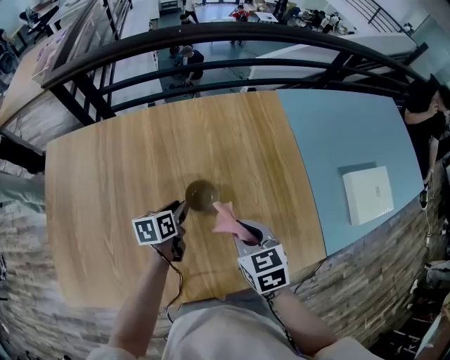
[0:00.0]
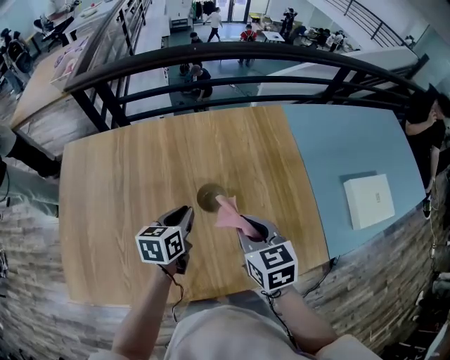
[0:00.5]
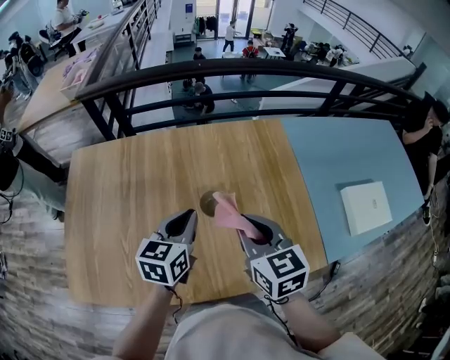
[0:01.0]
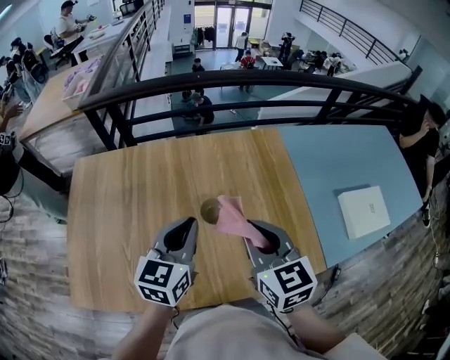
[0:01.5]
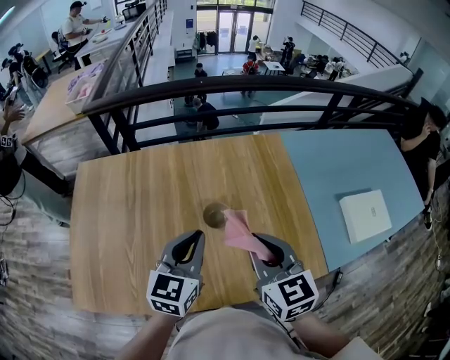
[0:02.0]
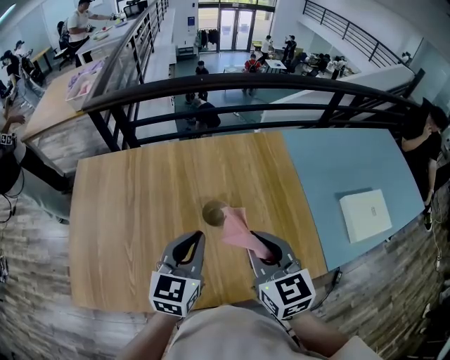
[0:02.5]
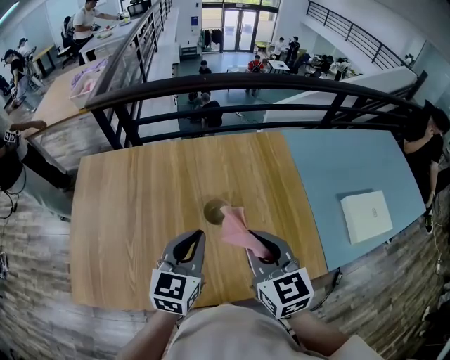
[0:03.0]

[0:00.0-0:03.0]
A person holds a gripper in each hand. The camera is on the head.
0:00.0 to 0:01.5: Both grippers travel together upward, approximately 25 cm. The left gripper rotates some 40 degrees, and closes. Meanwhile the right gripper changes its angle by approximately 20 degrees.
0:01.5 to 0:03.0: The grippers move only a little.

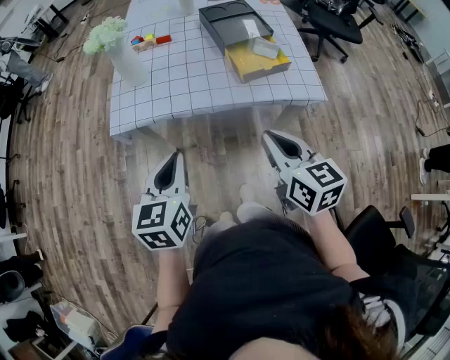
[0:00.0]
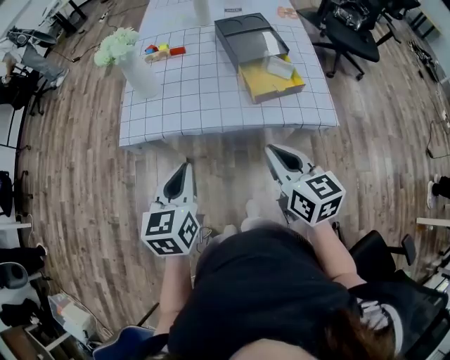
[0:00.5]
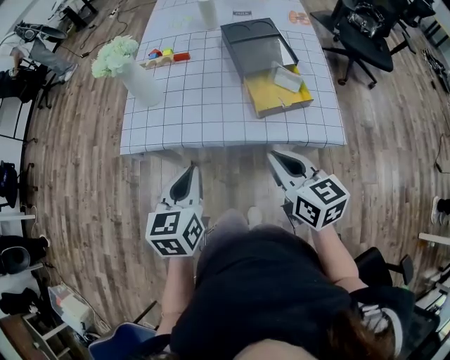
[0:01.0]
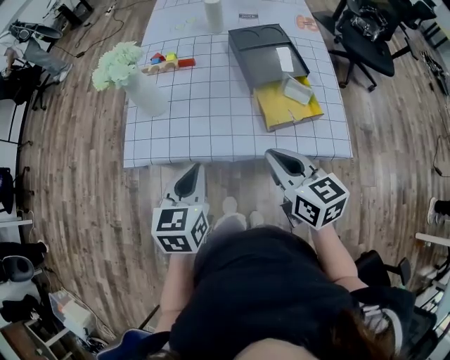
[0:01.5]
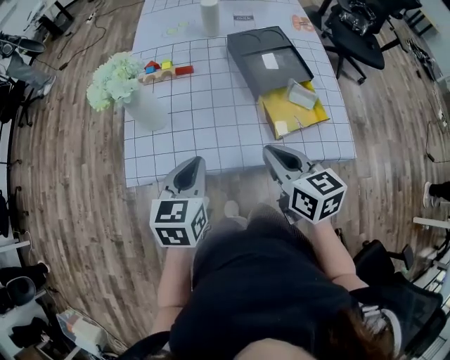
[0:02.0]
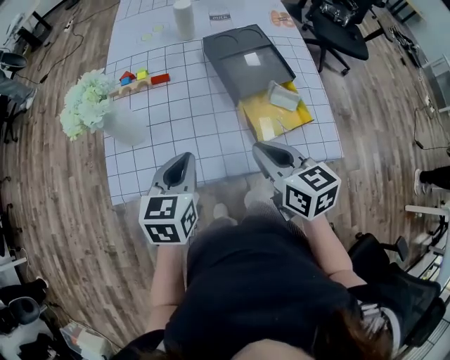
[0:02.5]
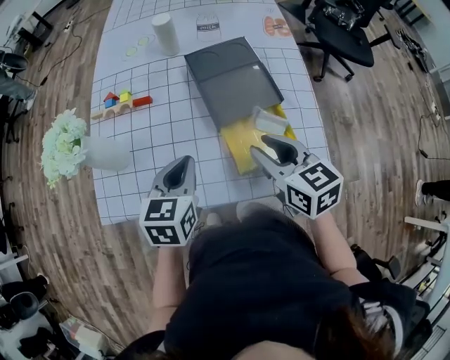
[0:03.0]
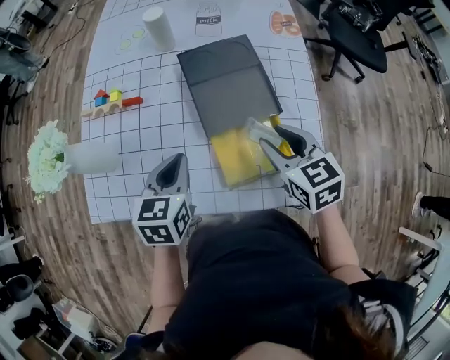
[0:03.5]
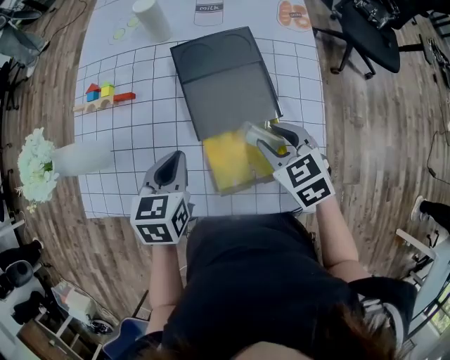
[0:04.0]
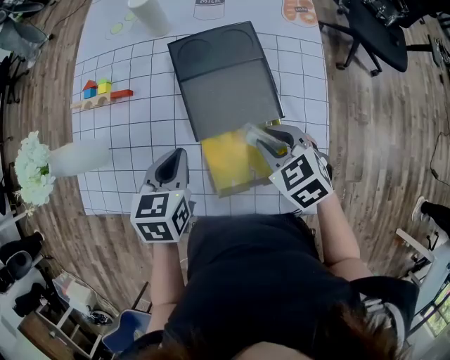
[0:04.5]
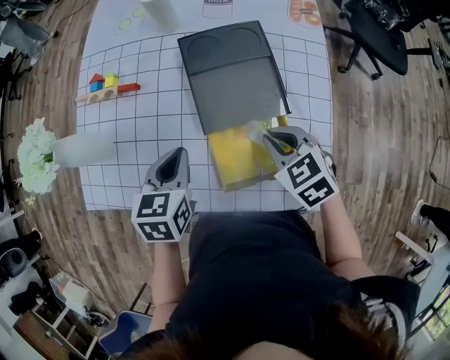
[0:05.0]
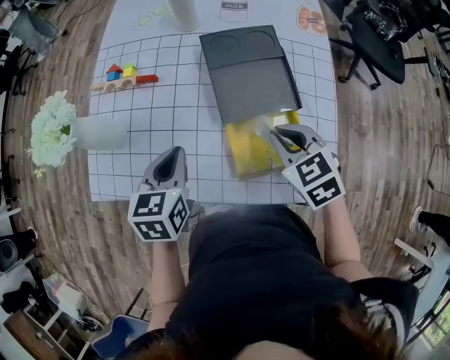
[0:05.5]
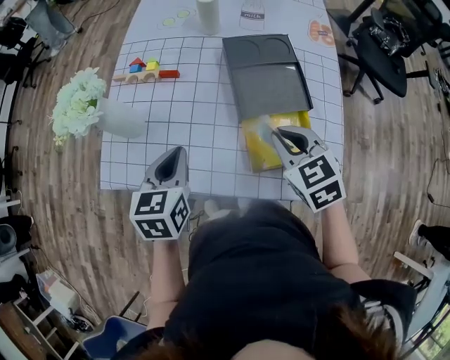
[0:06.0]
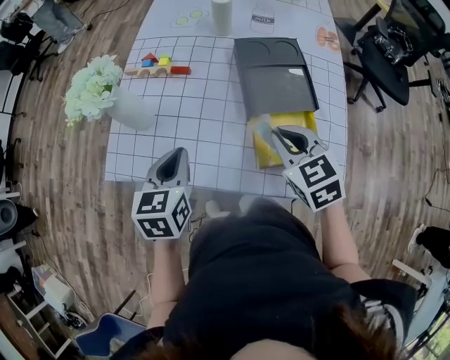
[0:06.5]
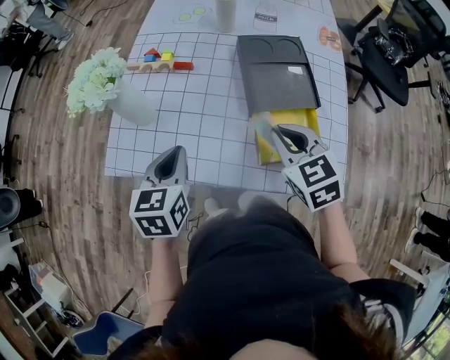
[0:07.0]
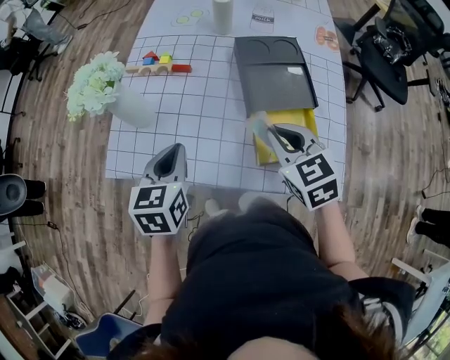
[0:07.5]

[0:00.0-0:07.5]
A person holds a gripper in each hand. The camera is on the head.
0:00.0 to 0:02.0: The grippers both shift forward by roughly 20 cm.
0:02.0 to 0:04.0: The right gripper shifts about 30 cm to the right, forward and downward, changes its angle by some 40 degrees, and opens up. The left gripper heads forward and to the right, covering about 25 cm.
0:04.0 to 0:05.5: The left gripper moves to the left, about 5 cm; the right gripper shifts by some 5 cm, and closes.
0:05.5 to 0:07.5: The right gripper shifts some 10 cm to the left and upward; the left gripper goes about 10 cm to the left.

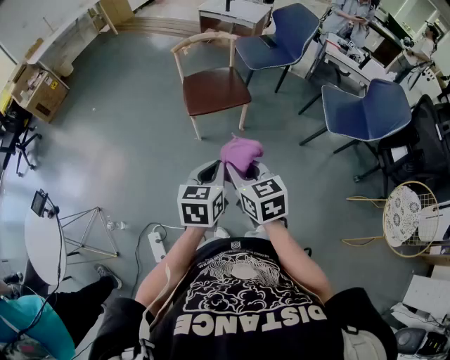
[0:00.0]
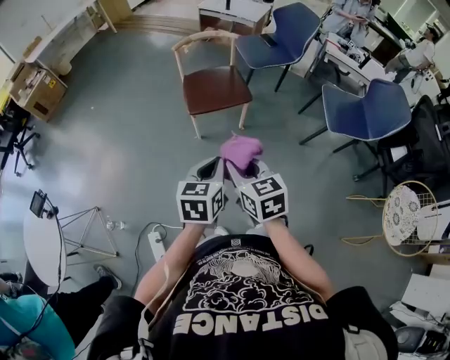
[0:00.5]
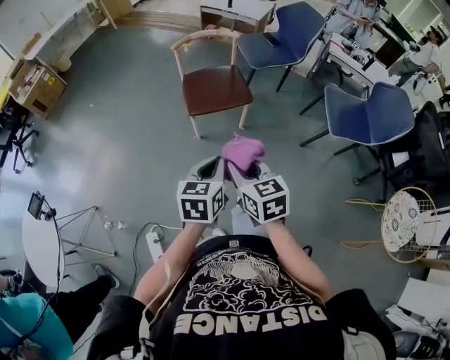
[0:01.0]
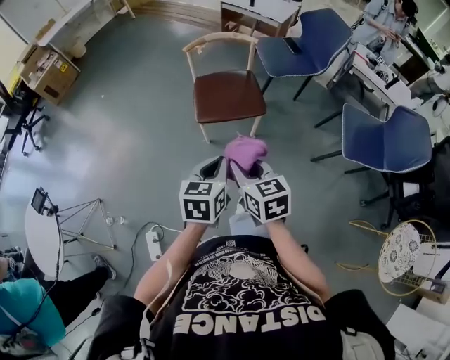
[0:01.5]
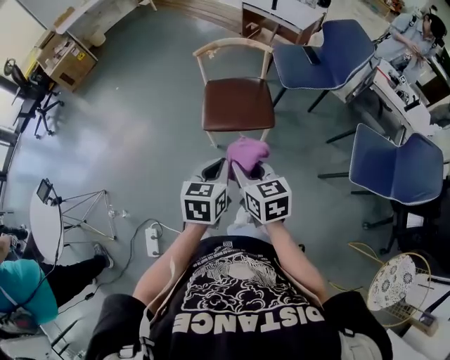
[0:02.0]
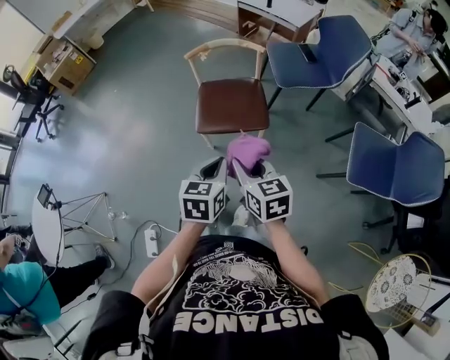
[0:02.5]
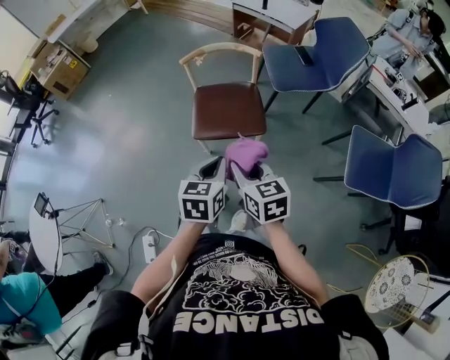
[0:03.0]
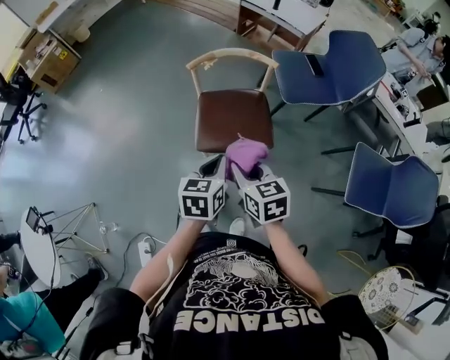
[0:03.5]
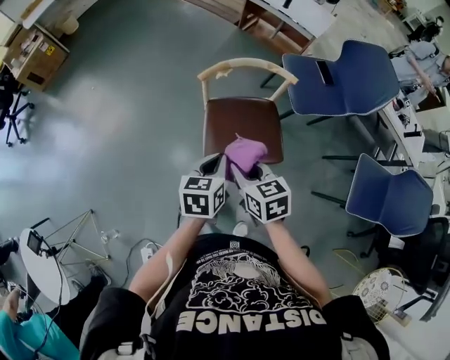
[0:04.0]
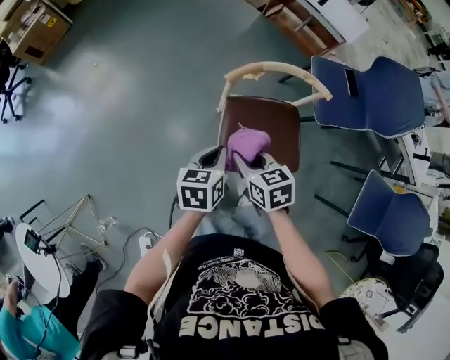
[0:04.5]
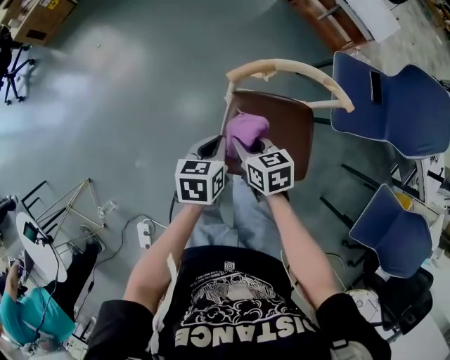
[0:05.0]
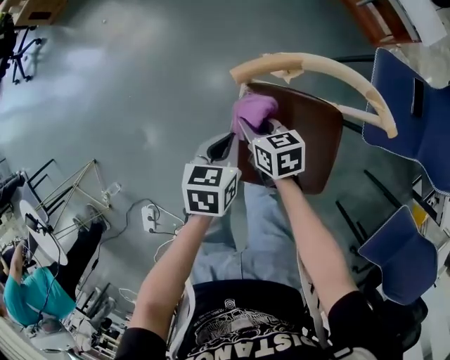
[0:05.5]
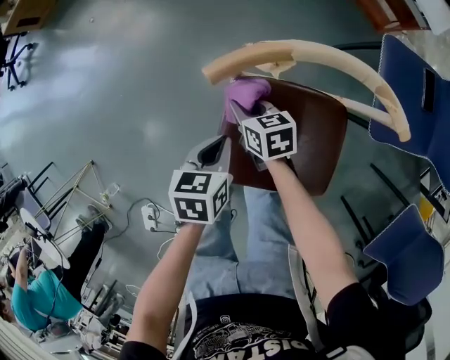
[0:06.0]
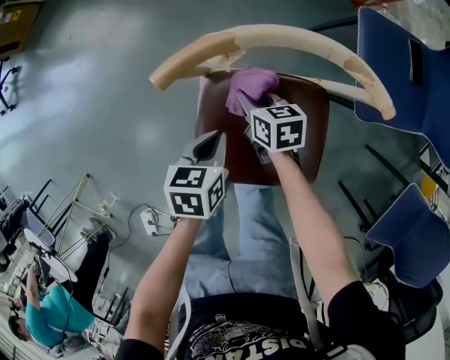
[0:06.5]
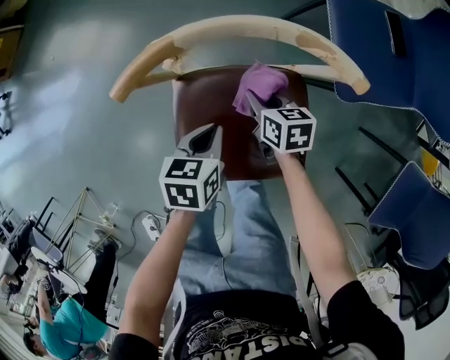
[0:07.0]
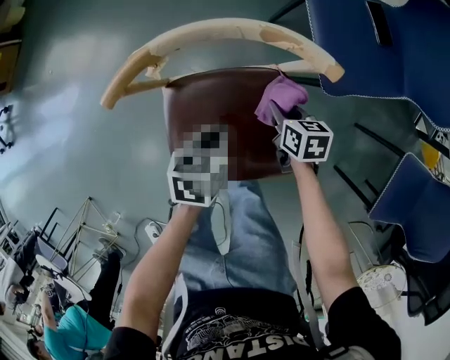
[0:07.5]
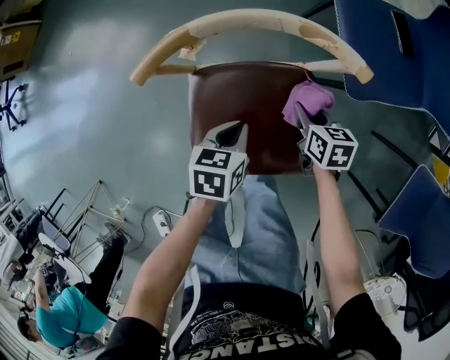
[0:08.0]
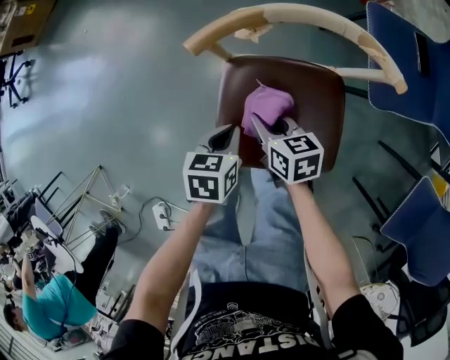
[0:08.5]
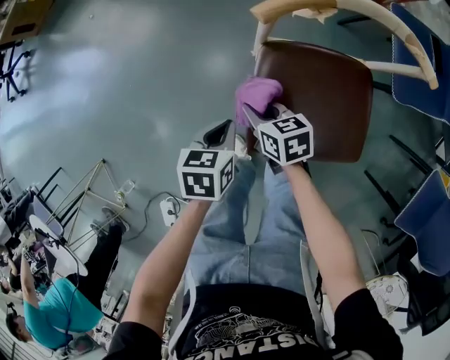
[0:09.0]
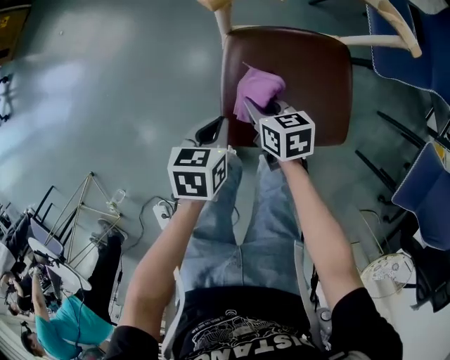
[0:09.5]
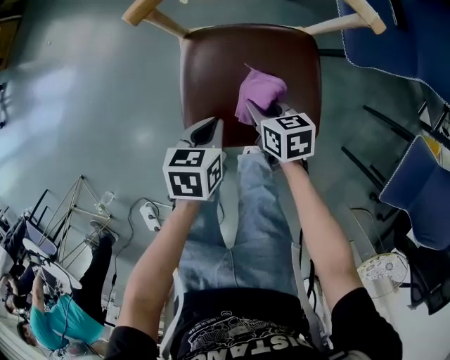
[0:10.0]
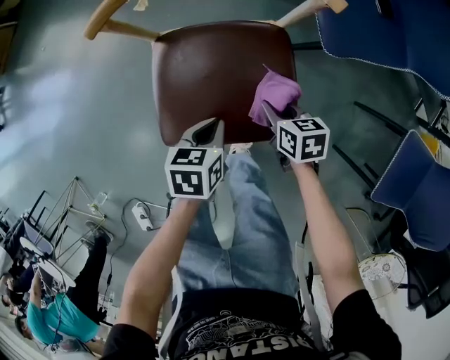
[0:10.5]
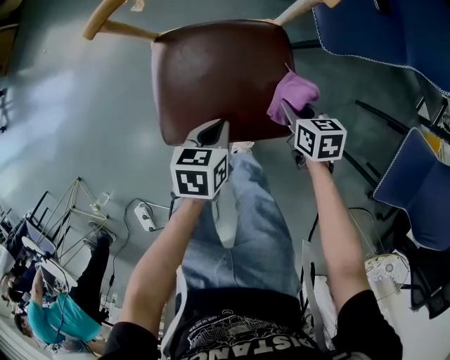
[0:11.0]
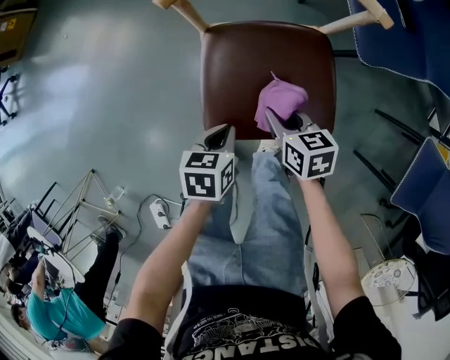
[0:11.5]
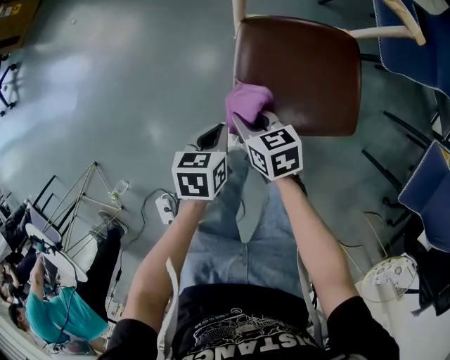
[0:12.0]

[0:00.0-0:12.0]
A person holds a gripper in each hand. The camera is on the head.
0:00.0 to 0:02.0: Both grippers move forward, about 20 cm.
0:02.0 to 0:04.0: Both grippers travel together forward, about 25 cm.
0:04.0 to 0:06.0: The grippers both shift downward and forward by some 35 cm. The left gripper swivels some 20 degrees, while the right gripper turns by roughly 20 degrees.
0:06.0 to 0:08.0: The right gripper changes place by some 30 cm, and turns by some 30 degrees; the left gripper shifts by approximately 15 cm.
0:08.0 to 0:10.0: The left gripper shifts about 10 cm backward, and travels to the left and back again, roughly 25 cm each way, while the right gripper travels to the left and backward by approximately 15 cm.
0:10.0 to 0:12.0: The right gripper travels to the left by approximately 20 cm; the left gripper shifts some 15 cm to the left and backward.

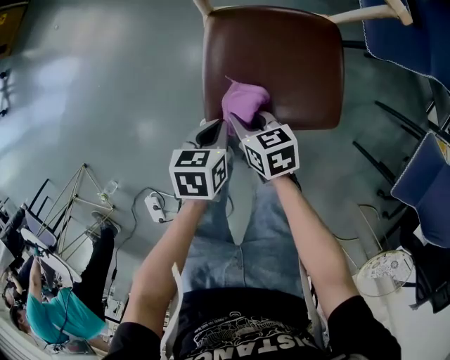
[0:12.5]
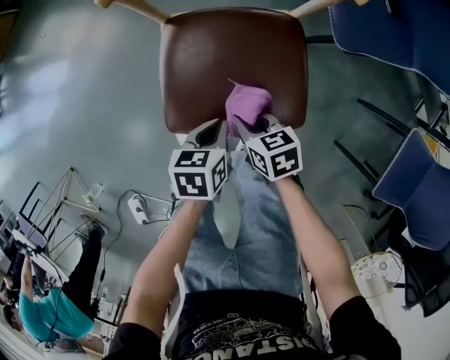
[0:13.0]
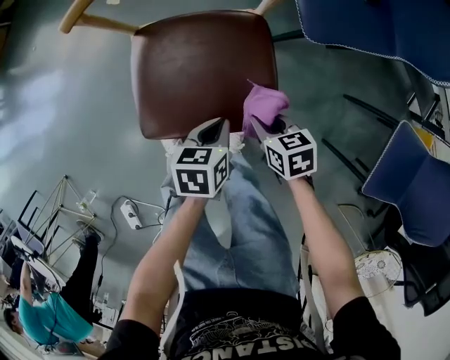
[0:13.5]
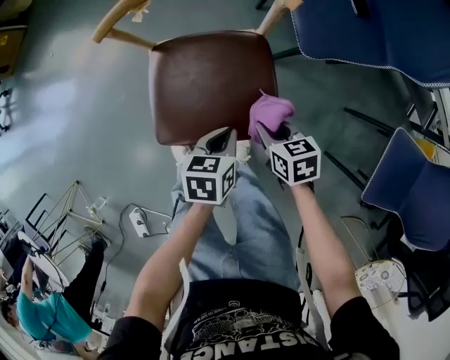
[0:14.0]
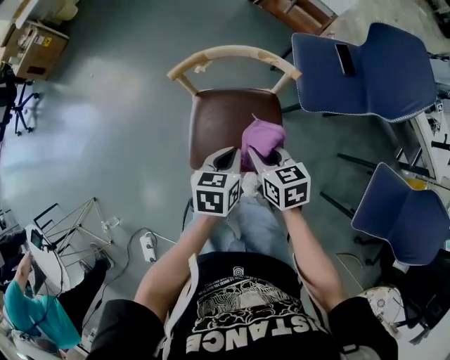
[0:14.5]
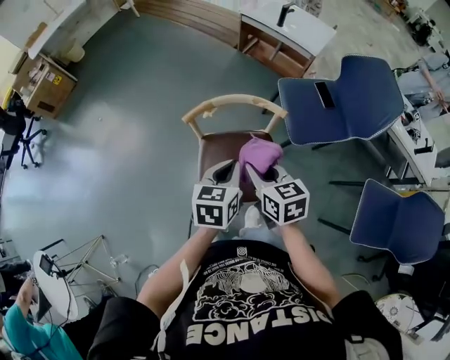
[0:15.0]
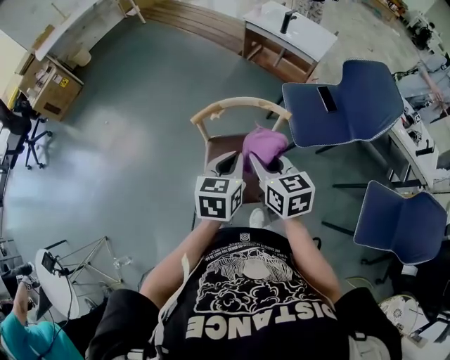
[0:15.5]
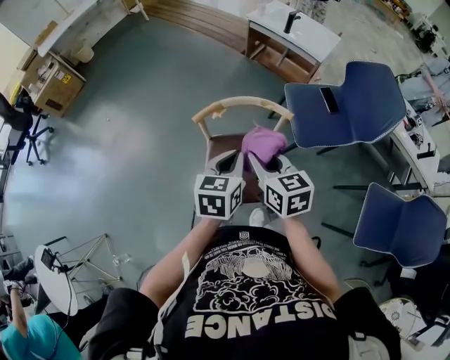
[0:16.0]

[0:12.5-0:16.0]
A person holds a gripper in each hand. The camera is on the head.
0:12.5 to 0:14.5: The grippers both shift upward and to the right by approximately 25 cm.
0:14.5 to 0:16.0: Both grippers travel together upward, about 20 cm.
